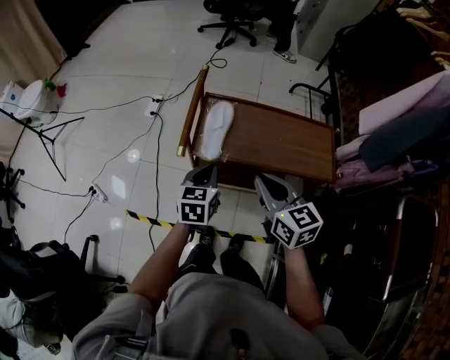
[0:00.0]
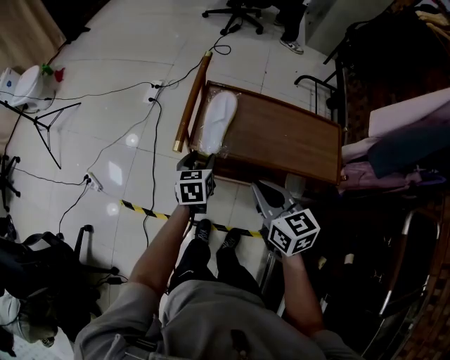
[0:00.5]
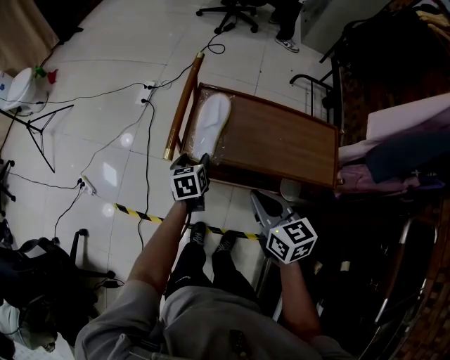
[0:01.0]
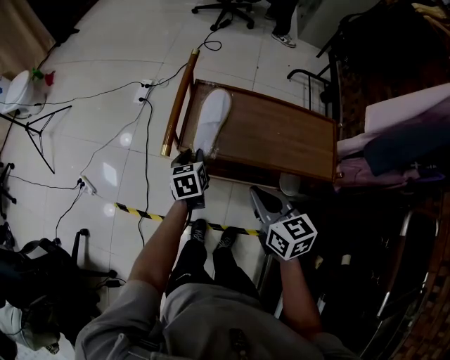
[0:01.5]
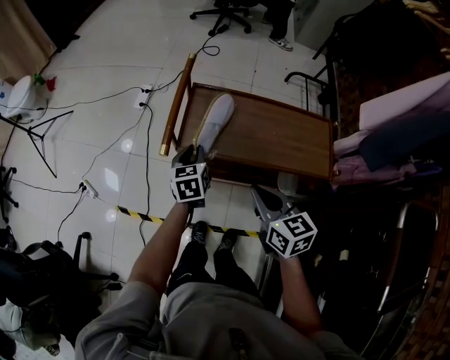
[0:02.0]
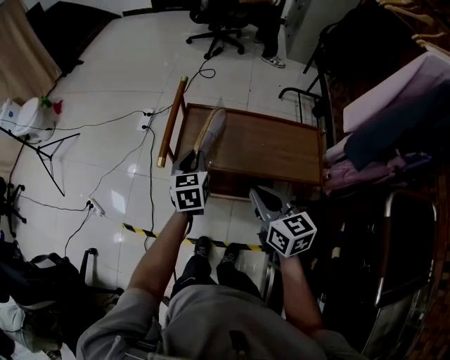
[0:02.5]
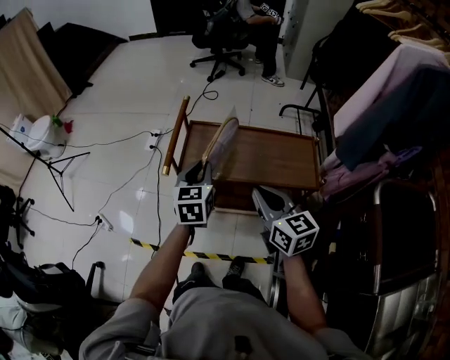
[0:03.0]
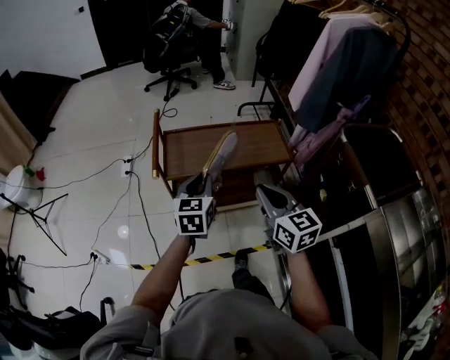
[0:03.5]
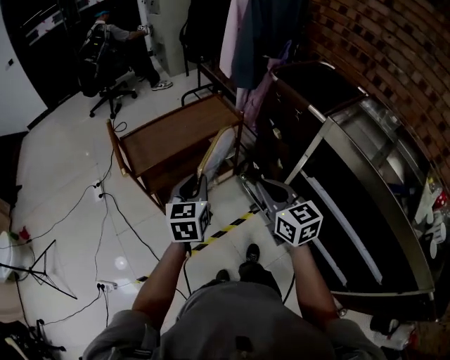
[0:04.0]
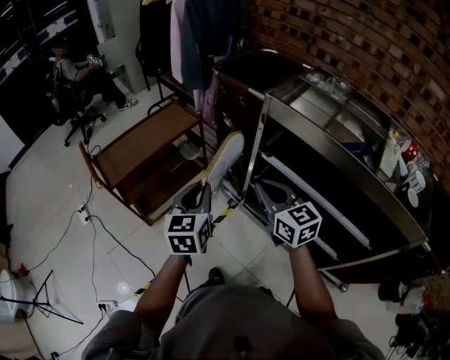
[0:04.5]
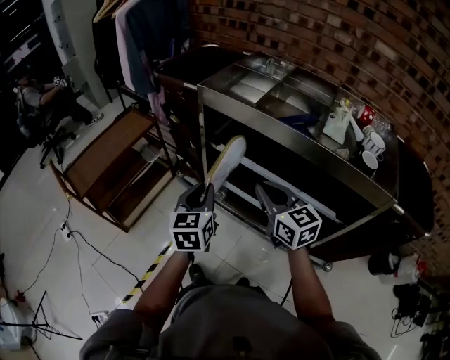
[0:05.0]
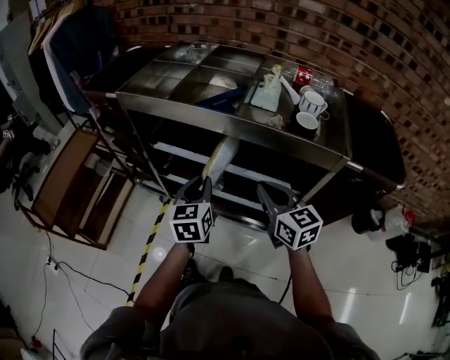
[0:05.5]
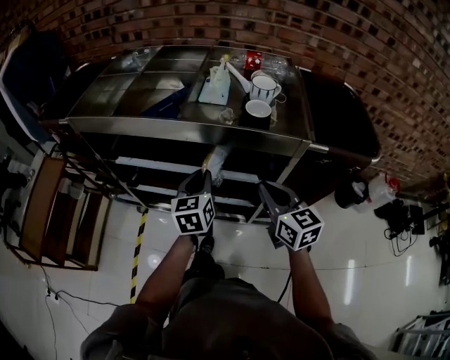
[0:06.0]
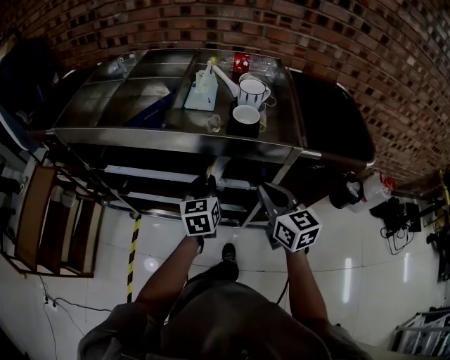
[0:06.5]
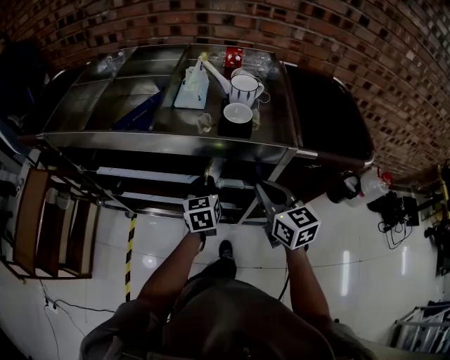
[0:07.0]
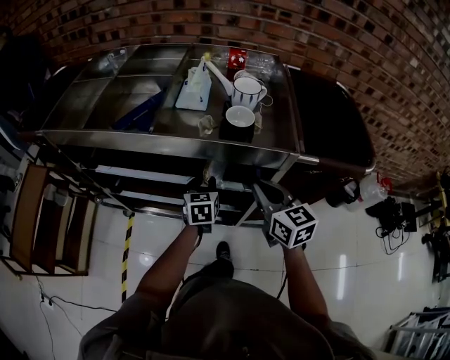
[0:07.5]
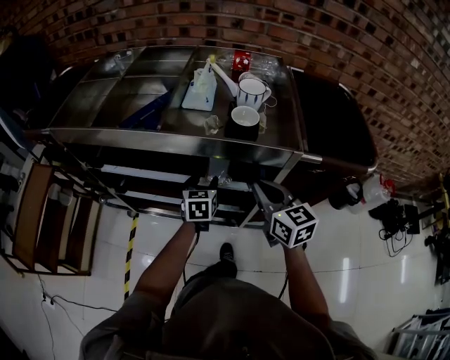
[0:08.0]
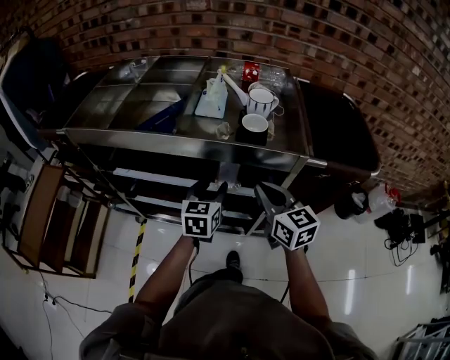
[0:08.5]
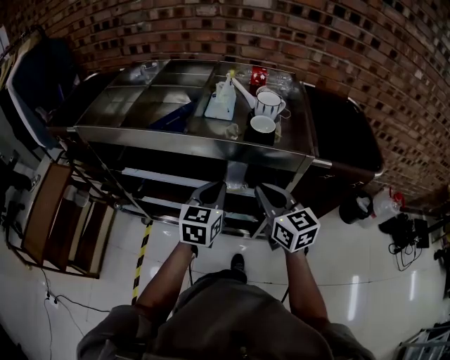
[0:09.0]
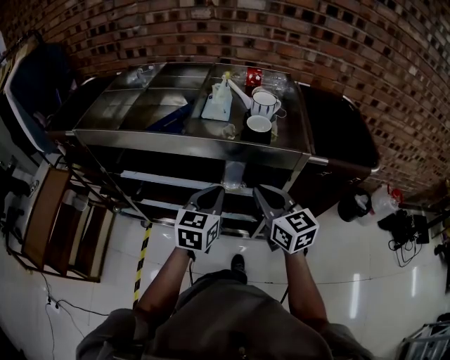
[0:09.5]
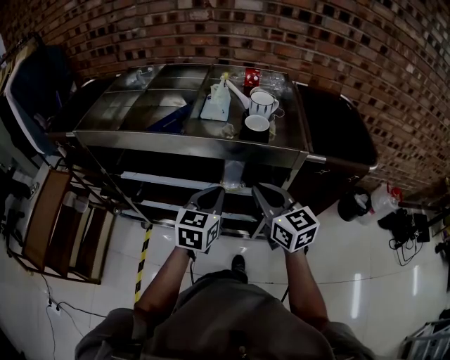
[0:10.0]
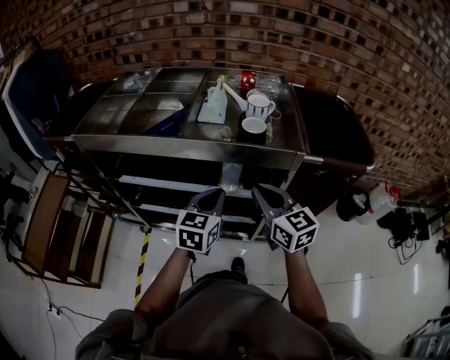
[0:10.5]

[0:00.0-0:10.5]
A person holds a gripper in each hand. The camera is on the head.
0:00.0 to 0:02.0: The right gripper shifts about 5 cm downward, while the left gripper shifts some 10 cm forward and downward, and opens, then closes once more.
0:02.0 to 0:04.0: The right gripper moves about 35 cm, and rotates about 40 degrees; the left gripper shifts by roughly 40 cm, and changes its angle by roughly 50 degrees.
0:04.0 to 0:06.5: The two grippers travel together, roughly 70 cm. The left gripper changes its angle by roughly 50 degrees; the right gripper turns by roughly 60 degrees.
0:06.5 to 0:08.5: The left gripper goes downward and returns, approximately 10 cm each way, and opens up.
0:08.5 to 0:10.5: The left gripper goes roughly 10 cm backward and upward, and closes its fingers.

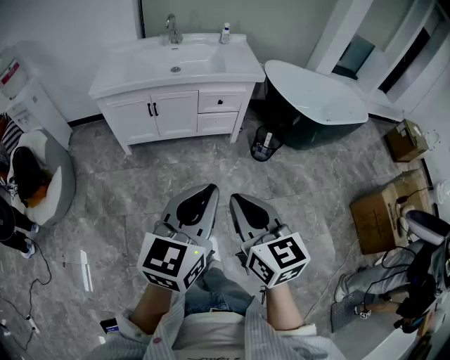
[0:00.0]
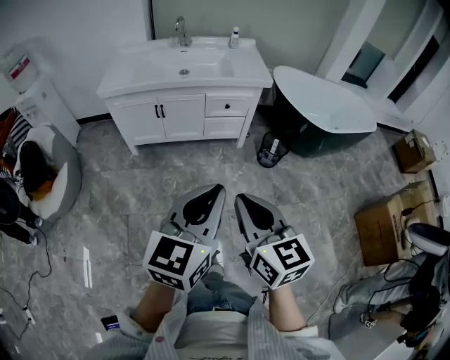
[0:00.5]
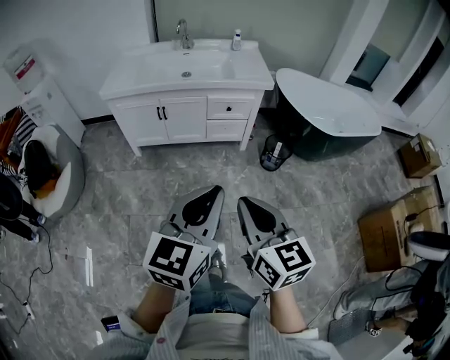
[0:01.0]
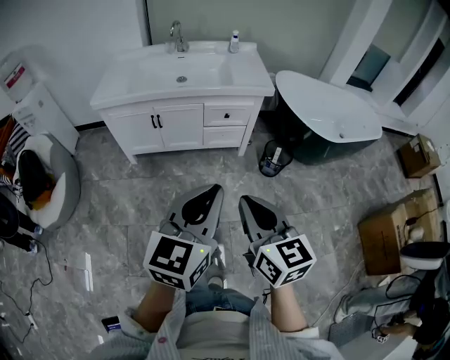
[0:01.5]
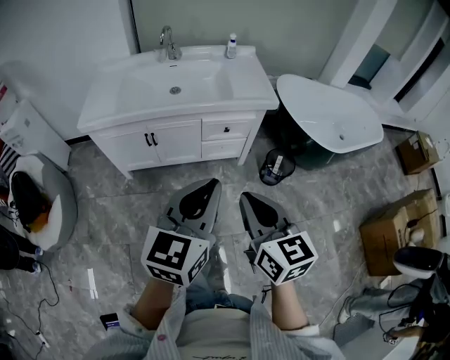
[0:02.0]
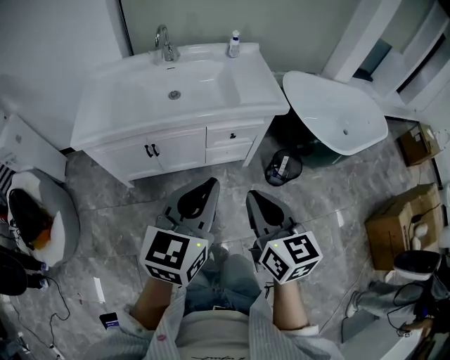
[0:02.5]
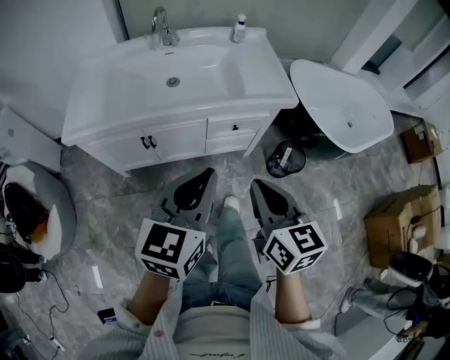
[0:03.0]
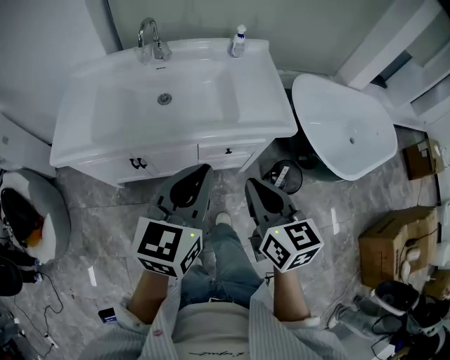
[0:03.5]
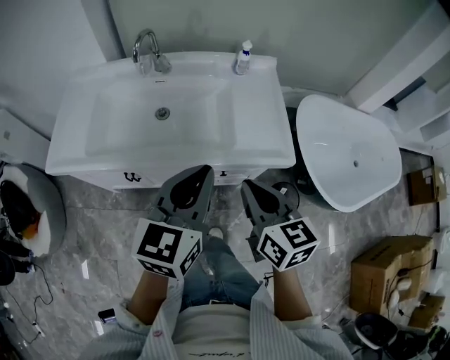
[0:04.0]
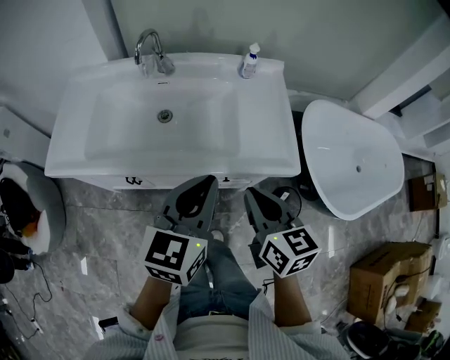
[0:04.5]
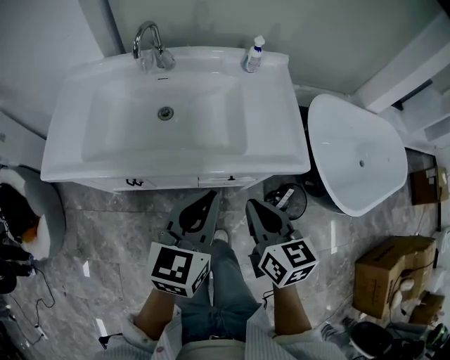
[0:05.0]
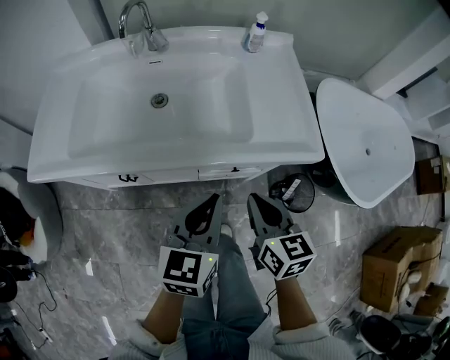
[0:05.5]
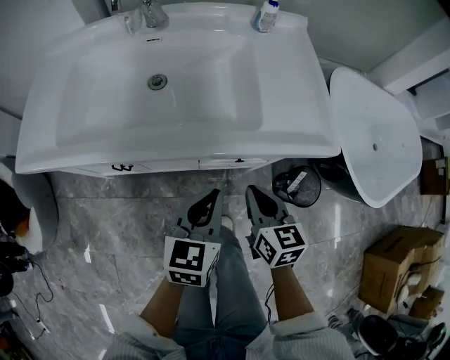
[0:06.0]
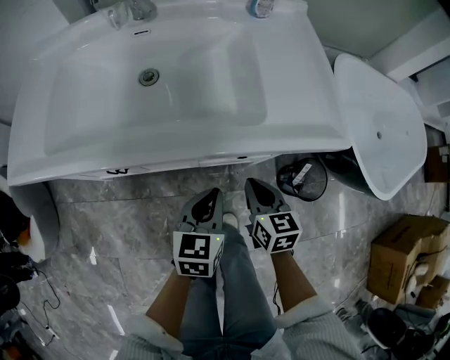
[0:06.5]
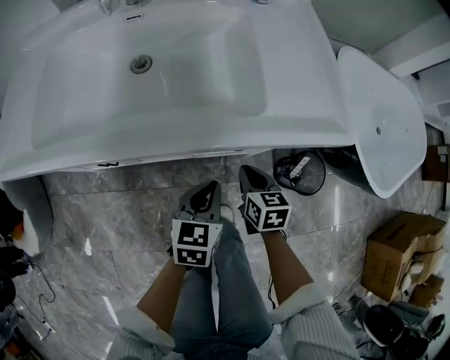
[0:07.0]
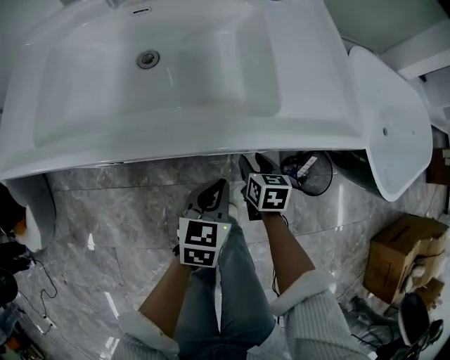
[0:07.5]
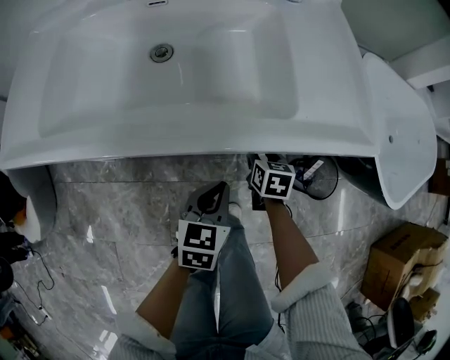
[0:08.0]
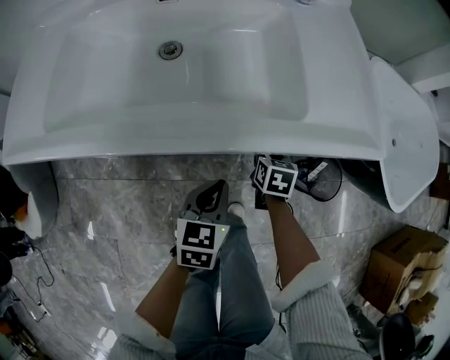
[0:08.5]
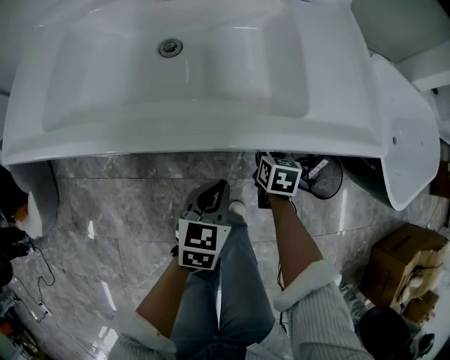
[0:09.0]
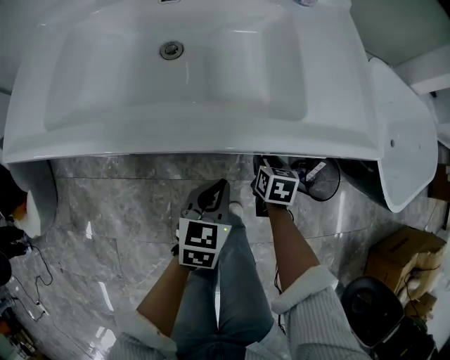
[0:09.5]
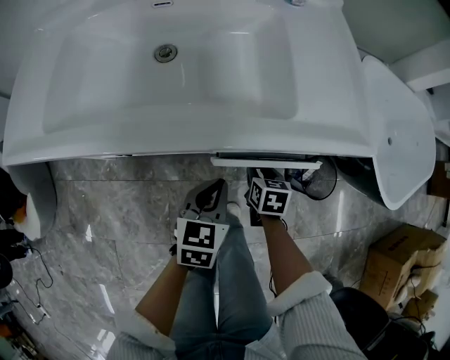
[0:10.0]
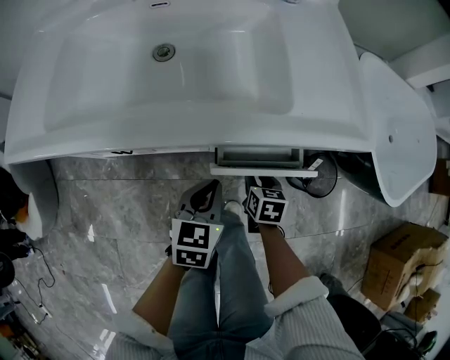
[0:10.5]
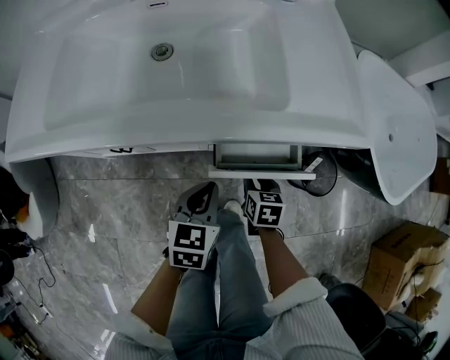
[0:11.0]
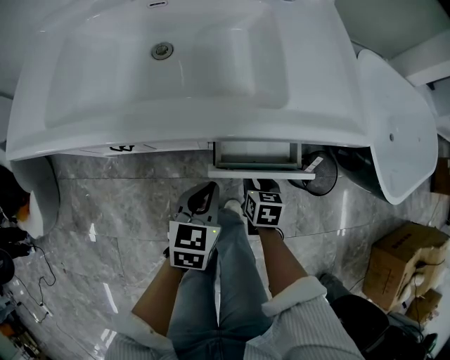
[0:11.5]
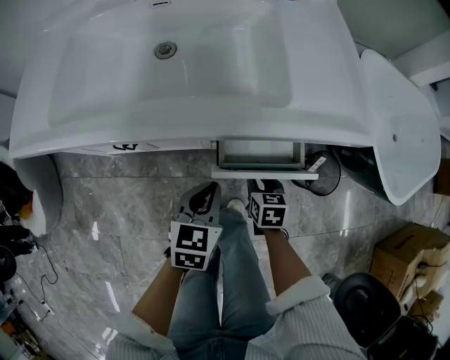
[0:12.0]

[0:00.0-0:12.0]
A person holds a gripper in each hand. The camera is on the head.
0:00.0 to 0:02.0: The two grippers go roughly 25 cm forward.
0:02.0 to 0:04.0: Both grippers move forward, some 35 cm.
0:04.0 to 0:06.0: The two grippers go approximately 25 cm downward.
0:06.0 to 0:08.0: The left gripper travels downward by roughly 15 cm. The right gripper moves downward and forward, approximately 20 cm, rotates some 20 degrees, and opens its fingers.
0:08.0 to 0:10.0: The right gripper moves backward, about 5 cm.
0:10.0 to 0:12.0: The right gripper shifts roughly 5 cm backward.

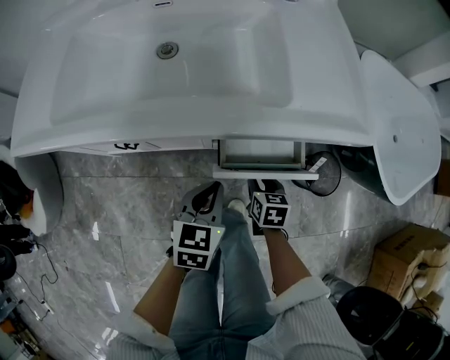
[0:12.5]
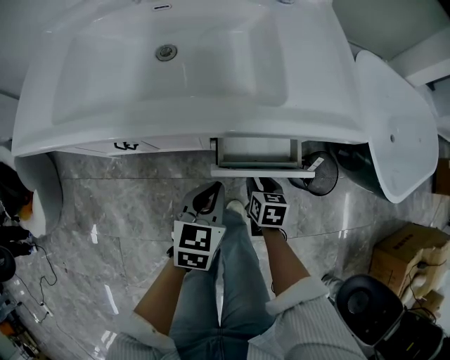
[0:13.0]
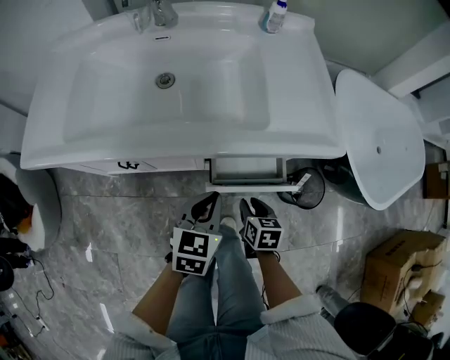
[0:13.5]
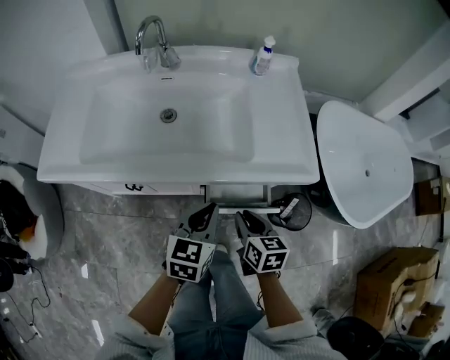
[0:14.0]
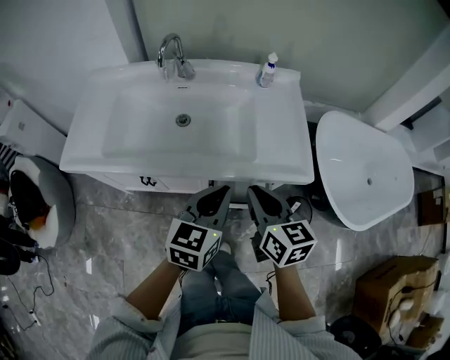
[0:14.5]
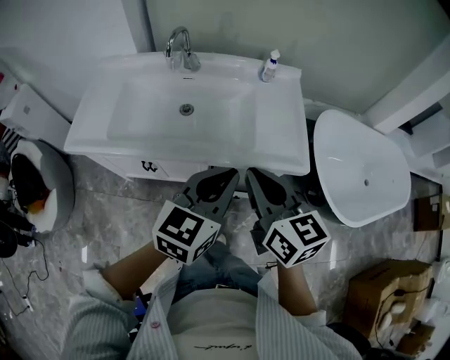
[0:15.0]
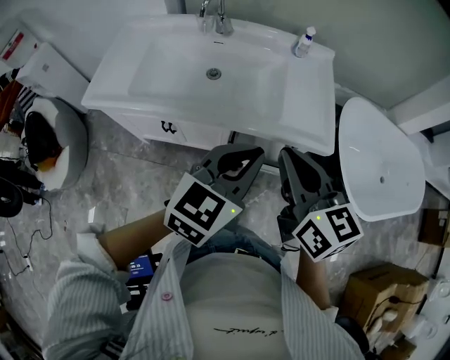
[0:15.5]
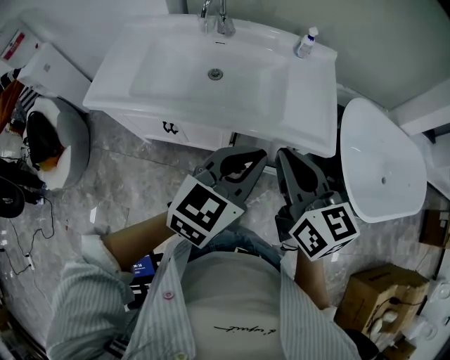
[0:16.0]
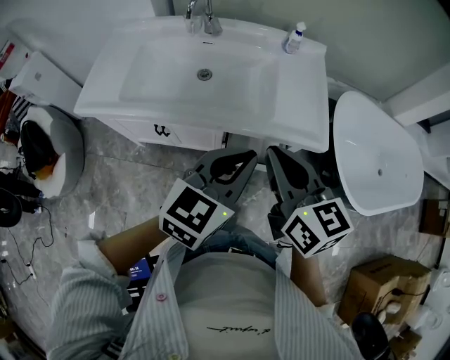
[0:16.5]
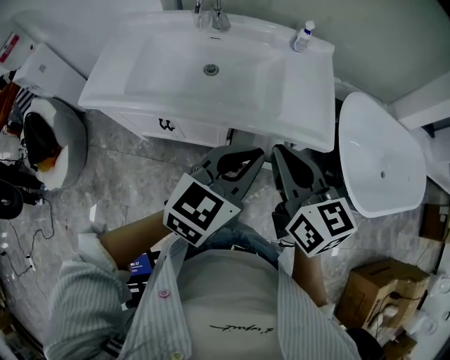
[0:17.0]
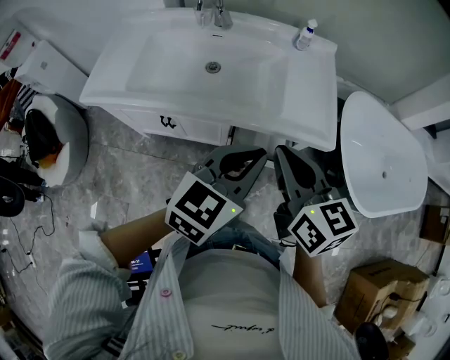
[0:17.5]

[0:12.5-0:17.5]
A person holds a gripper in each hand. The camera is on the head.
0:12.5 to 0:15.0: The two grippers go roughly 40 cm upward. The left gripper turns by roughly 30 degrees; the right gripper tips its fingers upward by some 40 degrees, and closes its fingers.
0:15.0 to 0:17.5: The grippers stay close to where they were, moving slightly.
